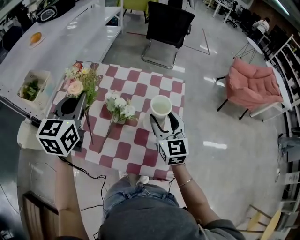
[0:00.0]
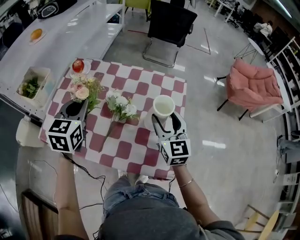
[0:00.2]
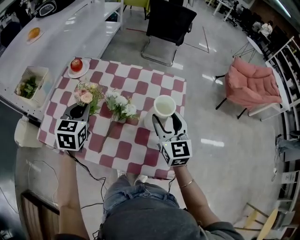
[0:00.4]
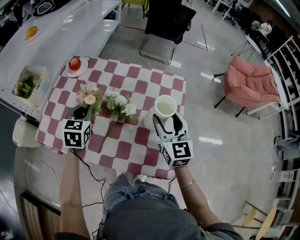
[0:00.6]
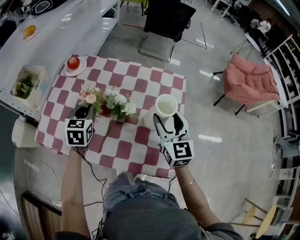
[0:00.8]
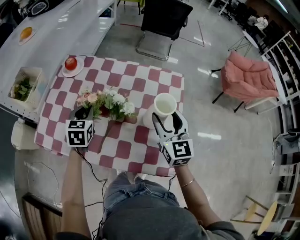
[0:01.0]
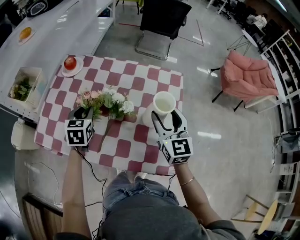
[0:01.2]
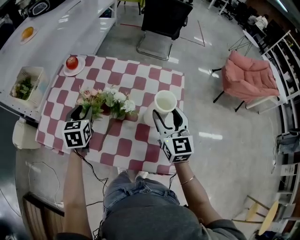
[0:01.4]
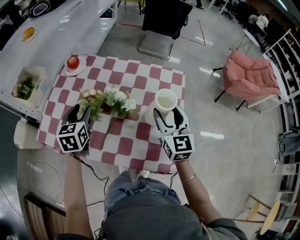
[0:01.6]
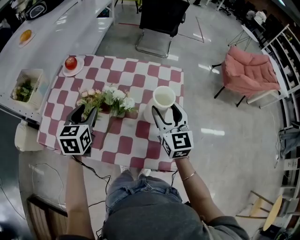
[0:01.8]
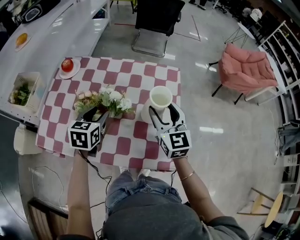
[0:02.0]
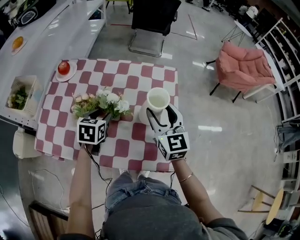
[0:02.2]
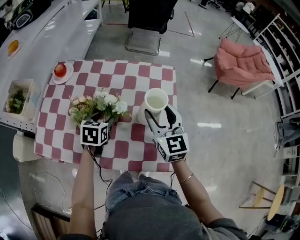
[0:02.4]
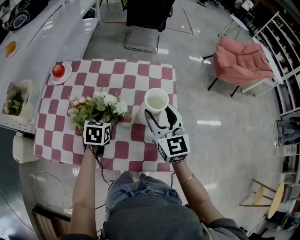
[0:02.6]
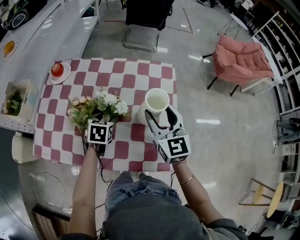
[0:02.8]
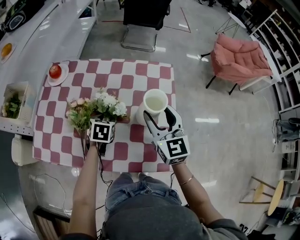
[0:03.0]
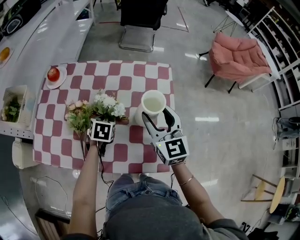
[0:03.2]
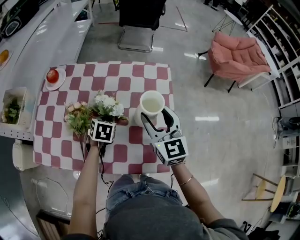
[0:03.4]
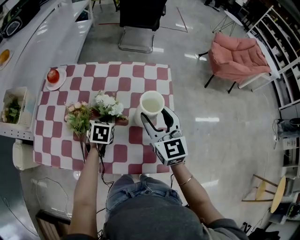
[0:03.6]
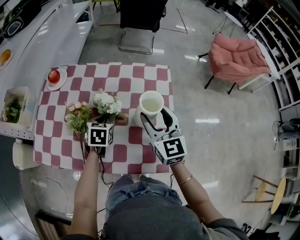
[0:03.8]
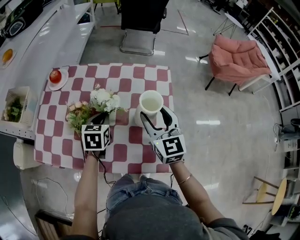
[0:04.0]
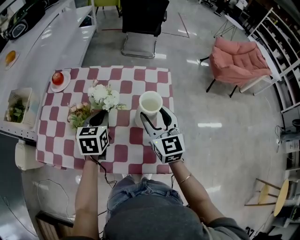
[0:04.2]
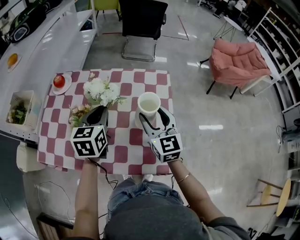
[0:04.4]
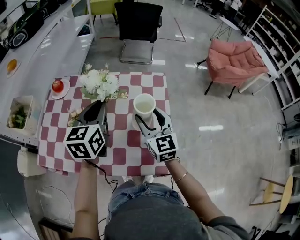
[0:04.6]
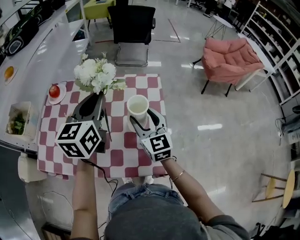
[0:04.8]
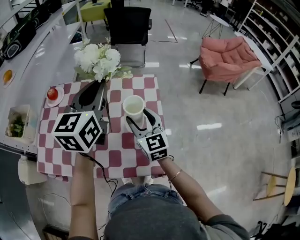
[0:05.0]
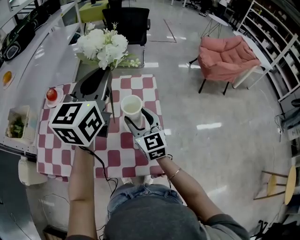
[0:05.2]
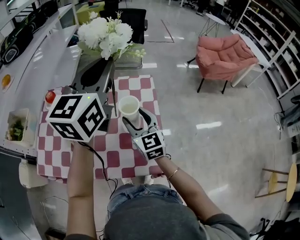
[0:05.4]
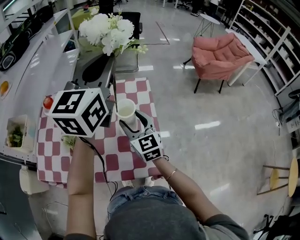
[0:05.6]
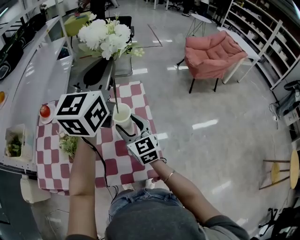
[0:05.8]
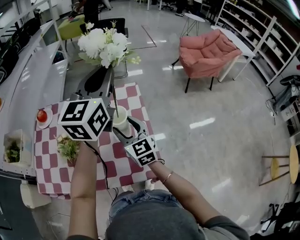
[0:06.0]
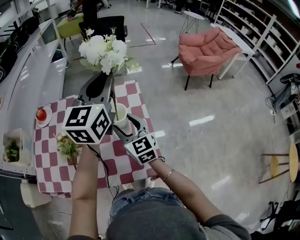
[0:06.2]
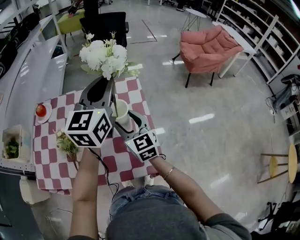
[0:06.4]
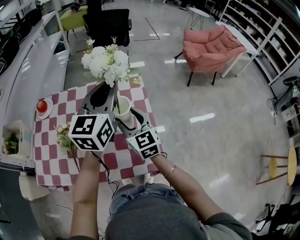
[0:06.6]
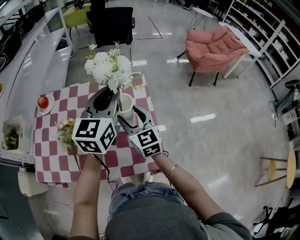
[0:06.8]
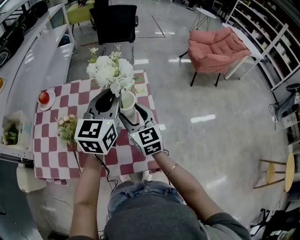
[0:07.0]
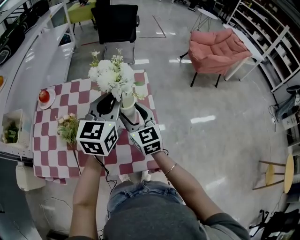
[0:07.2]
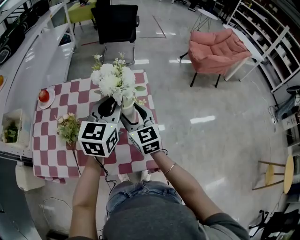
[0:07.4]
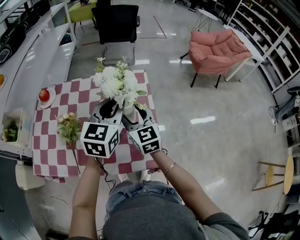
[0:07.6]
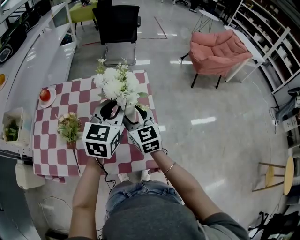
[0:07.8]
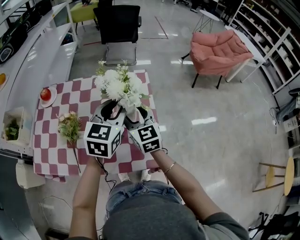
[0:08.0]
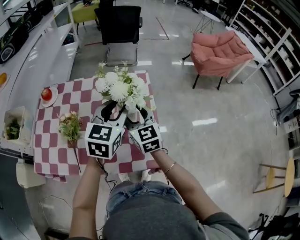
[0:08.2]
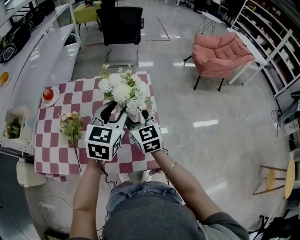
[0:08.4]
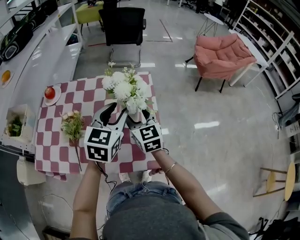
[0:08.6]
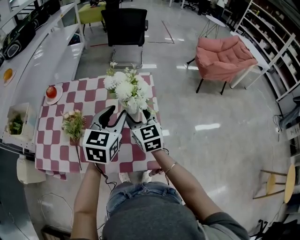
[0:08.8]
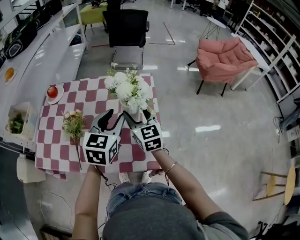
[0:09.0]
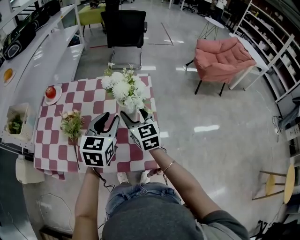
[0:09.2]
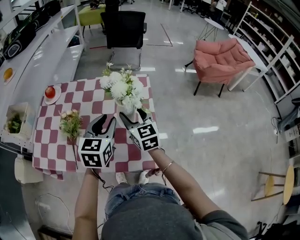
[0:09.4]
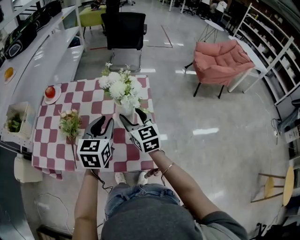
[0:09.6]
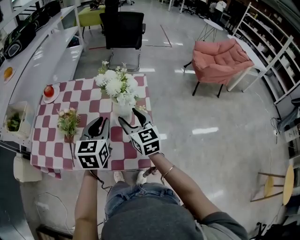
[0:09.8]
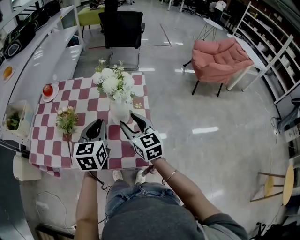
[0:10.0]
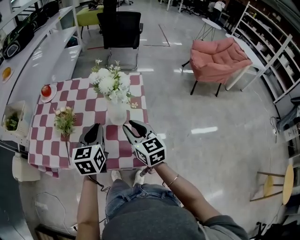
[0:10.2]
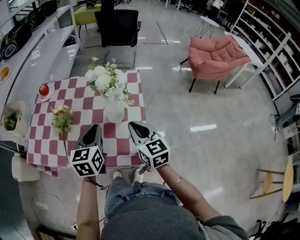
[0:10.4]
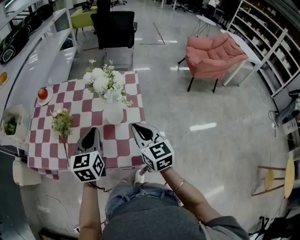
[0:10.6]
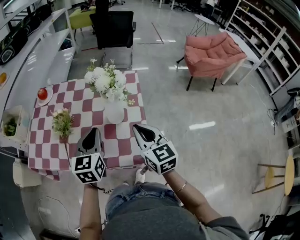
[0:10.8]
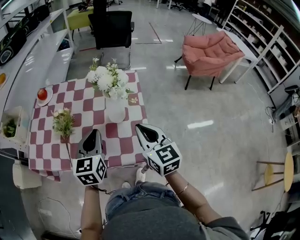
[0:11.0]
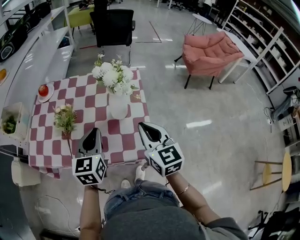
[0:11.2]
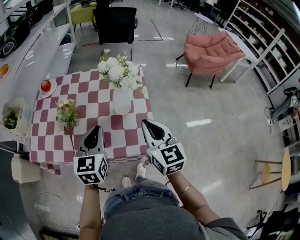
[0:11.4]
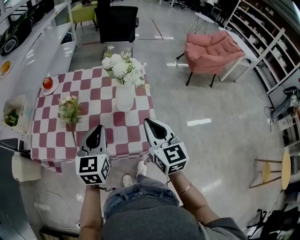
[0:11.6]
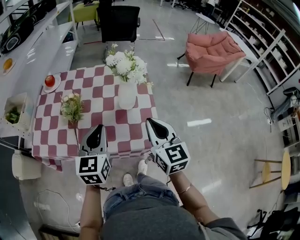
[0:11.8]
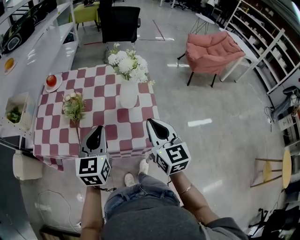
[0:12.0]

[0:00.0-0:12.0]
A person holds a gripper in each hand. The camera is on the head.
0:00.0 to 0:01.6: The left gripper moves downward, approximately 15 cm, and opens its fingers.
0:01.6 to 0:03.0: The left gripper goes about 20 cm downward and to the right, and turns by some 30 degrees.
0:03.0 to 0:04.4: The left gripper shifts some 20 cm upward, tips its fingers upward by about 30 degrees, and closes its fingers.
0:04.4 to 0:06.0: The left gripper heads upward and to the right, covering approximately 30 cm, and tips its fingers upward by about 30 degrees.
0:06.0 to 0:07.6: The left gripper goes some 15 cm downward.
0:07.6 to 0:09.0: The left gripper shifts by approximately 5 cm, and opens.
0:09.0 to 0:10.4: The right gripper moves backward and to the right, approximately 10 cm, and closes up, while the left gripper is displaced backward by roughly 5 cm, and closes.
0:10.4 to 0:12.0: The left gripper heads backward and to the left, covering about 10 cm. The right gripper heads backward and upward, covering some 10 cm.

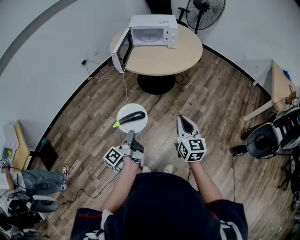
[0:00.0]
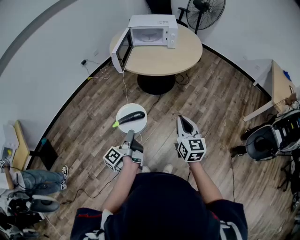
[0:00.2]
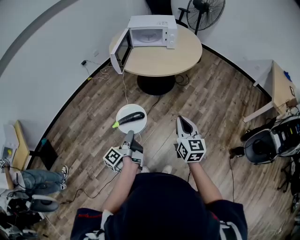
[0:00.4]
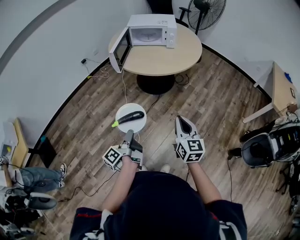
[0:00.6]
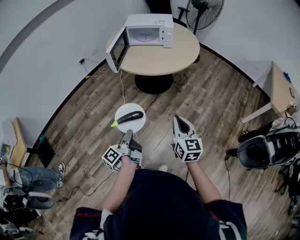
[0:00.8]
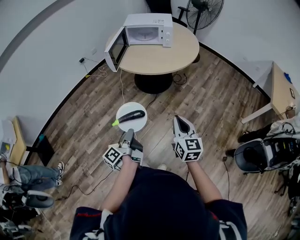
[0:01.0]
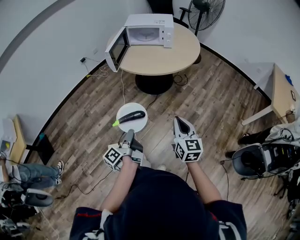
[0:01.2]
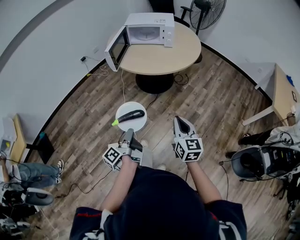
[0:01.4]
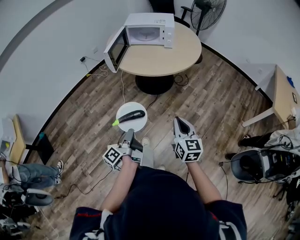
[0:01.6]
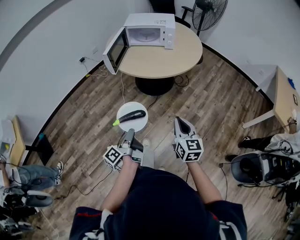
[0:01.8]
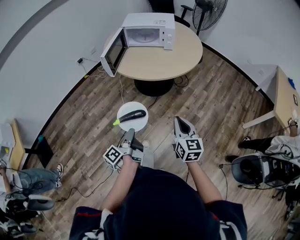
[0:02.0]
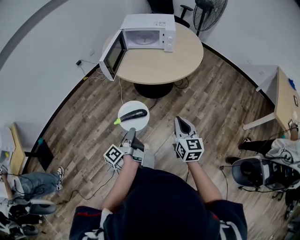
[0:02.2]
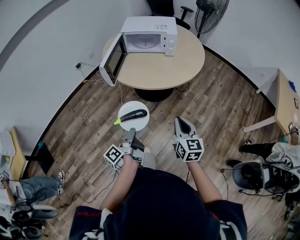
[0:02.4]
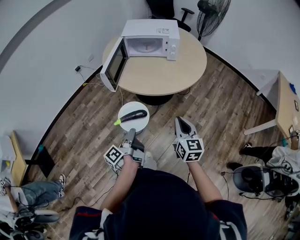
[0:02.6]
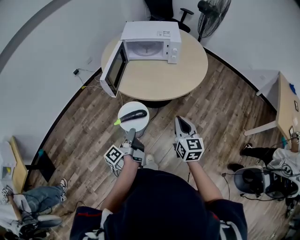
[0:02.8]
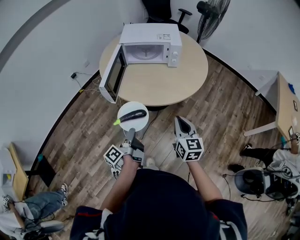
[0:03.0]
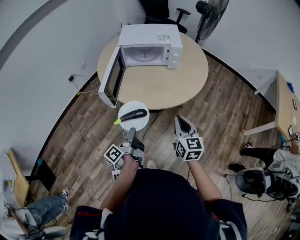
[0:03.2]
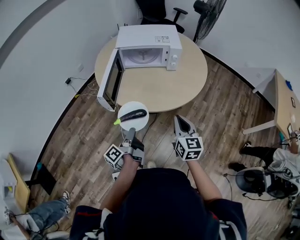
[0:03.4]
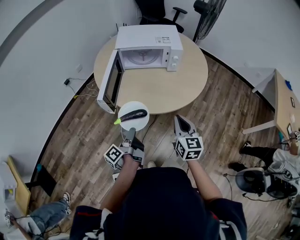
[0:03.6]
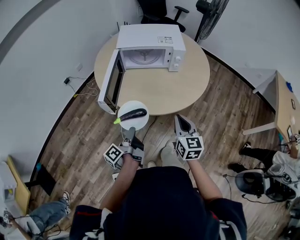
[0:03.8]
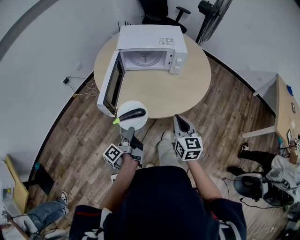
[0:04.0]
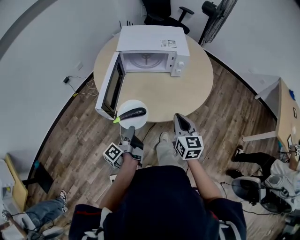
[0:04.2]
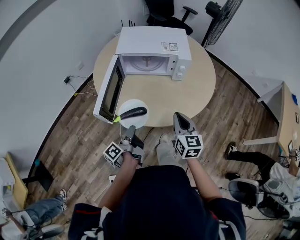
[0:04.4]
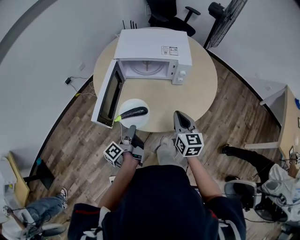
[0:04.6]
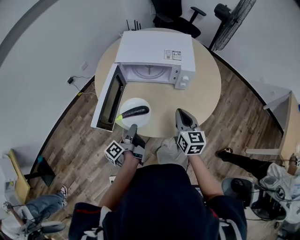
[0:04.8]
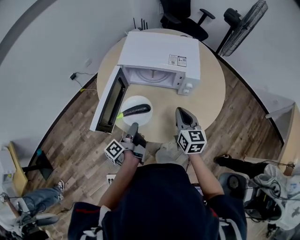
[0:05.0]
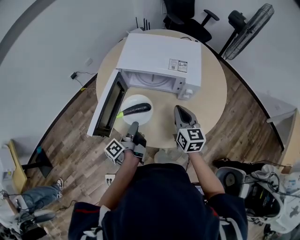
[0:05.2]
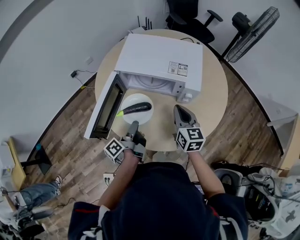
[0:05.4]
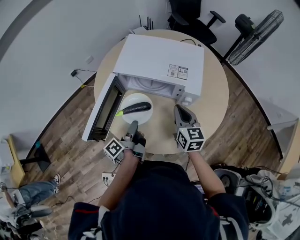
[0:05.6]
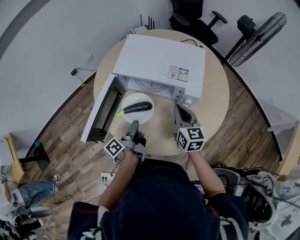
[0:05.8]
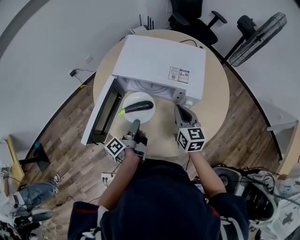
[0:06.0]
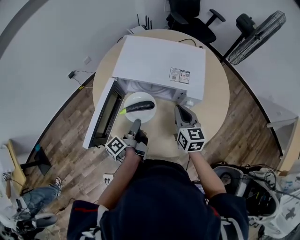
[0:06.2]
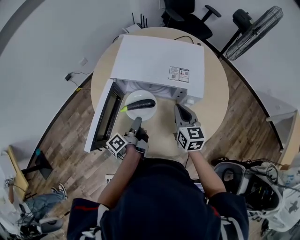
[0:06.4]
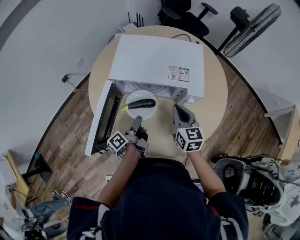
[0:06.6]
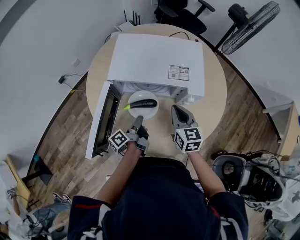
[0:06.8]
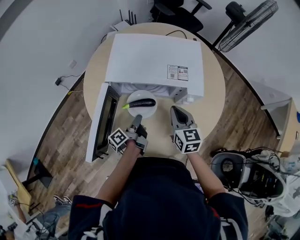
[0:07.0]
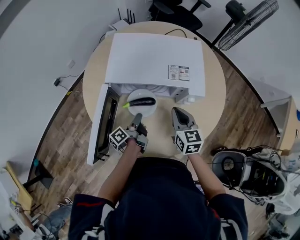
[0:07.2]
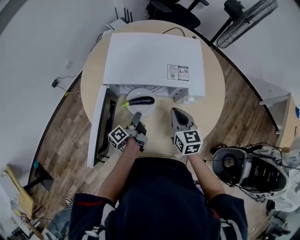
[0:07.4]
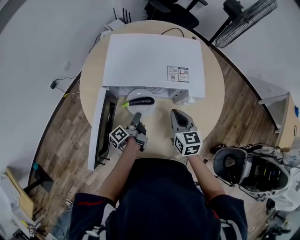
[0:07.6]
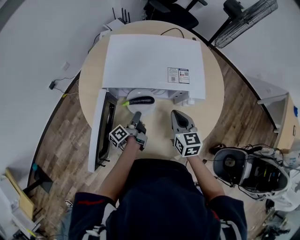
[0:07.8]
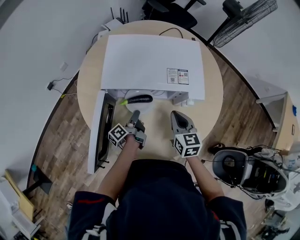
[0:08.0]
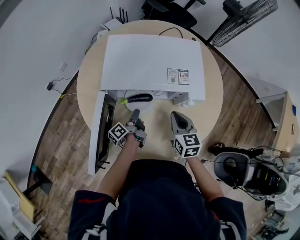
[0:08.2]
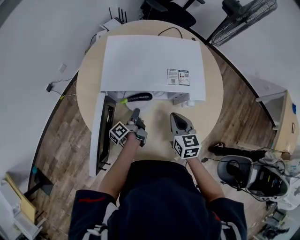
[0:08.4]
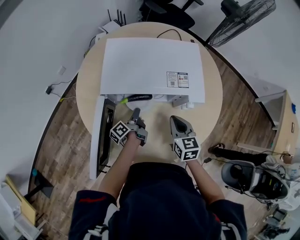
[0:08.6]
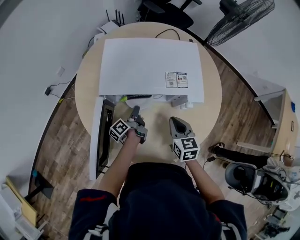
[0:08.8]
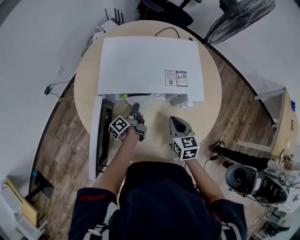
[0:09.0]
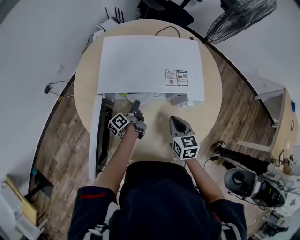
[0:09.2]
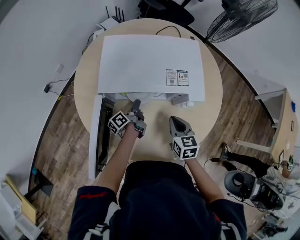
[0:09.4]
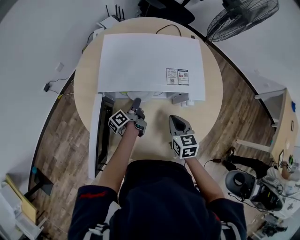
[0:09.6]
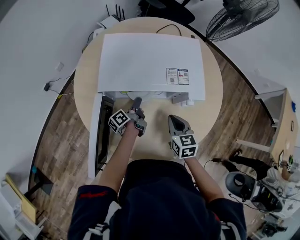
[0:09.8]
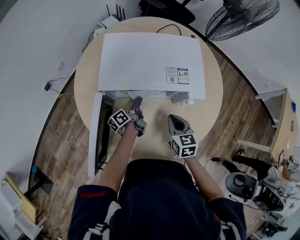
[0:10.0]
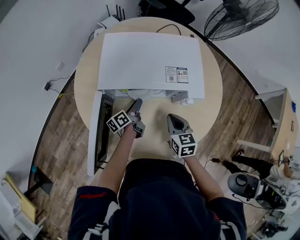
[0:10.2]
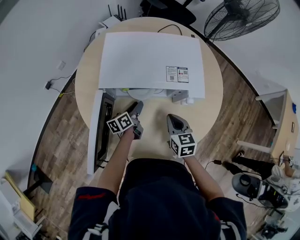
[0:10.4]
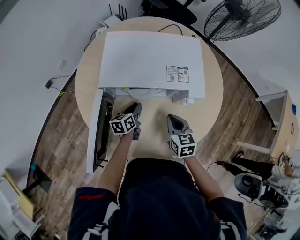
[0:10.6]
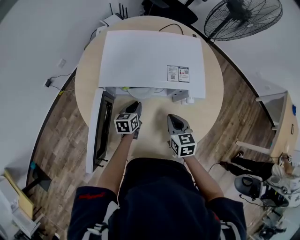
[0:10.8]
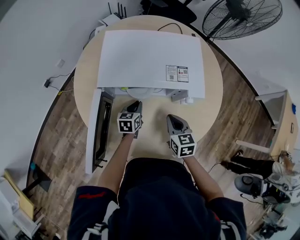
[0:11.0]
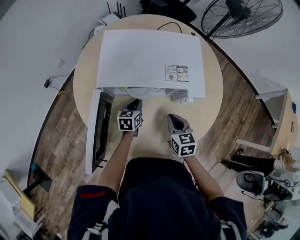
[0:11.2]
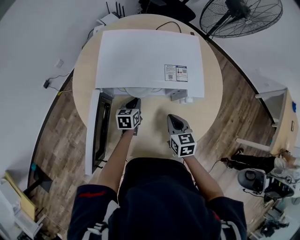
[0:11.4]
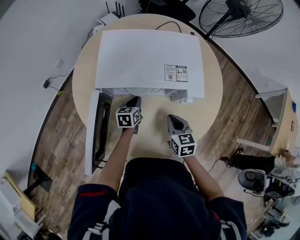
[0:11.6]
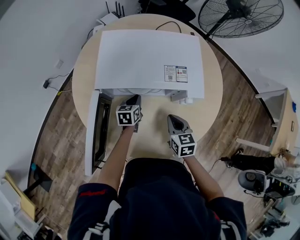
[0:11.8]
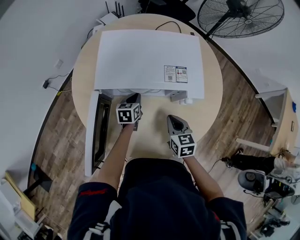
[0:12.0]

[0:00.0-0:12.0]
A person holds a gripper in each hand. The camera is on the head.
0:00.0 to 0:01.6: The right gripper moves about 10 cm.
0:01.6 to 0:03.0: The right gripper ends up roughly 30 cm from where it was.
0:03.0 to 0:04.4: The right gripper ends up roughly 20 cm from where it was.
0:04.4 to 0:06.0: The right gripper shifts by approximately 25 cm.
0:06.0 to 0:07.6: The right gripper changes place by about 5 cm.
